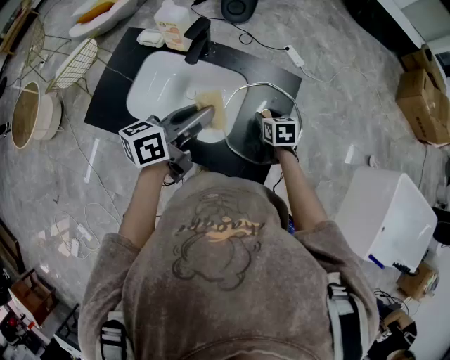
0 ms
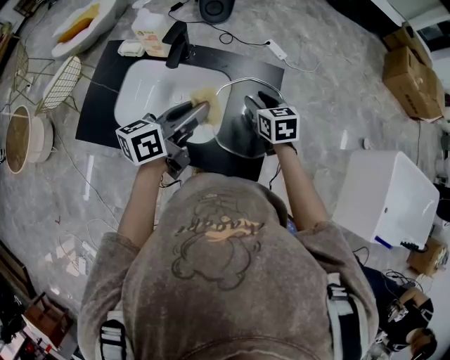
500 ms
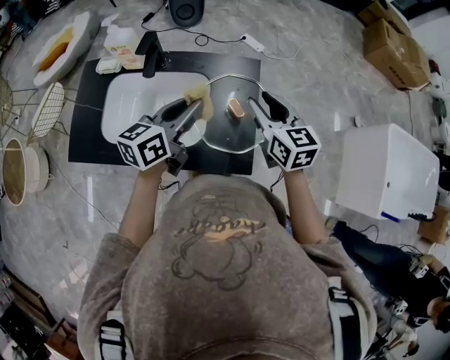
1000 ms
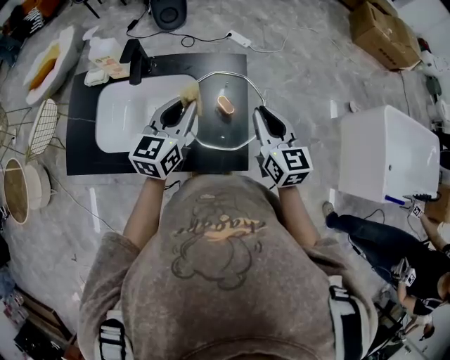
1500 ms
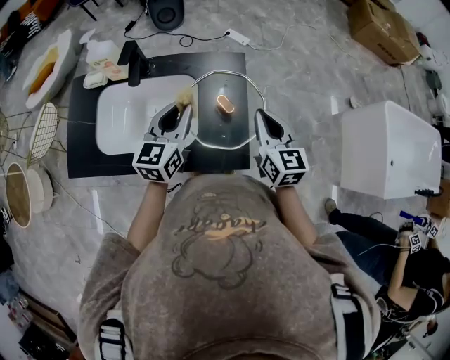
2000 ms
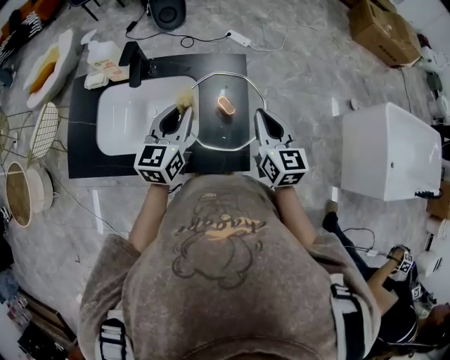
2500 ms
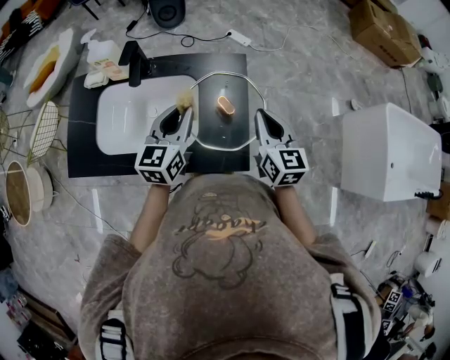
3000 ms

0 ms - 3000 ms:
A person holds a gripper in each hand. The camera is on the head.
0 ms - 1500 ms: The right gripper heads upward, to the right and backward, covering approximately 25 cm, tilts its fingers roughly 40 degrees upward, and closes, while the left gripper moves to the right, some 5 cm, and changes its angle by roughly 30 degrees.
1500 ms - 3000 ms: The grippers make only small movements.

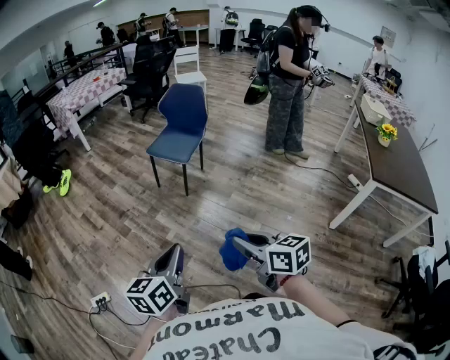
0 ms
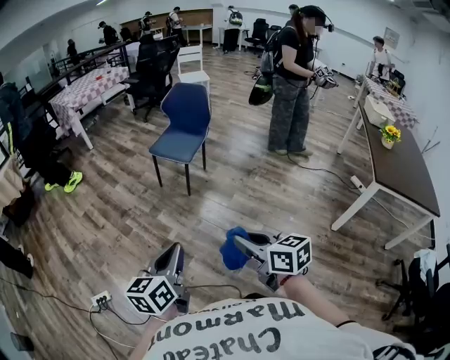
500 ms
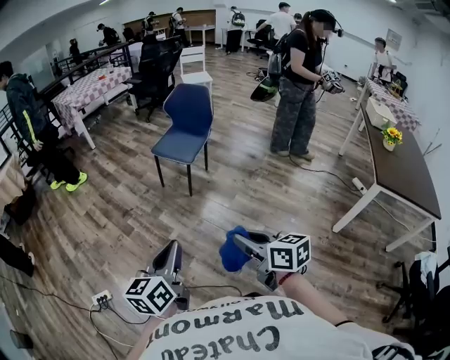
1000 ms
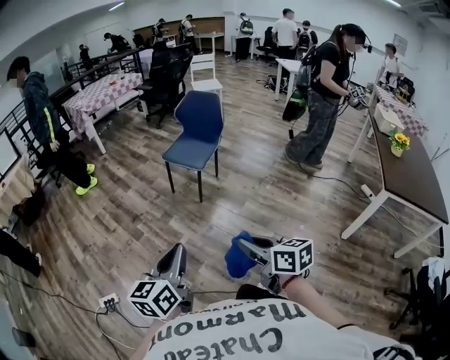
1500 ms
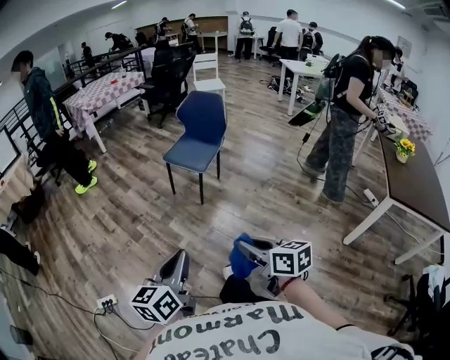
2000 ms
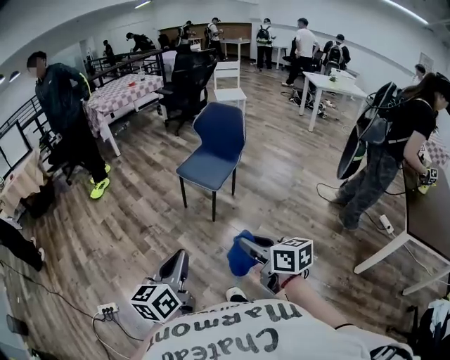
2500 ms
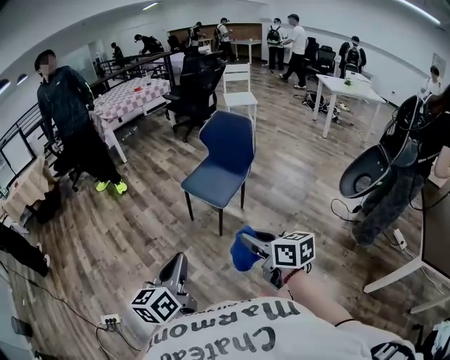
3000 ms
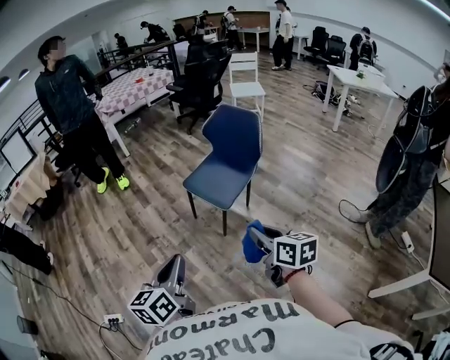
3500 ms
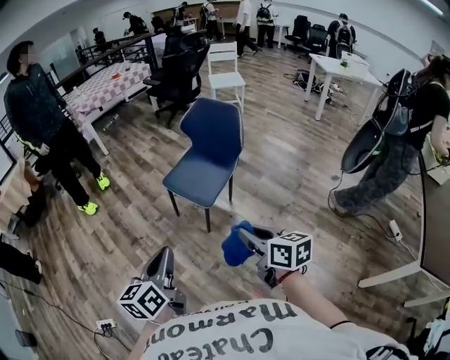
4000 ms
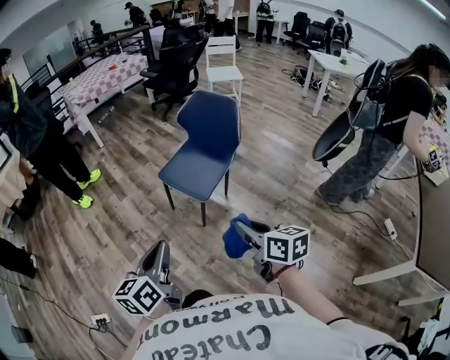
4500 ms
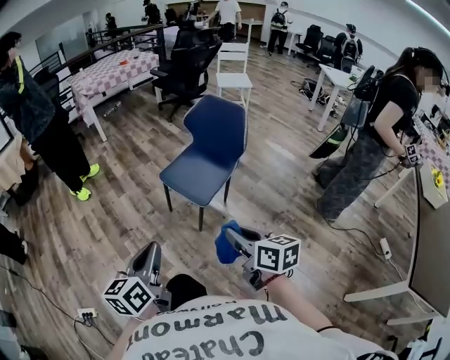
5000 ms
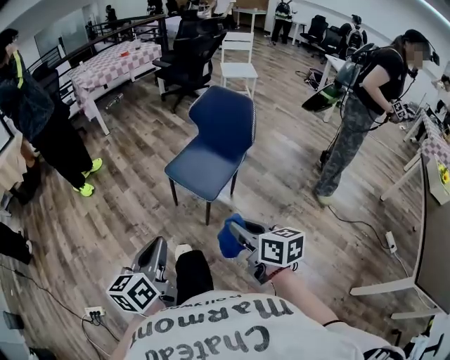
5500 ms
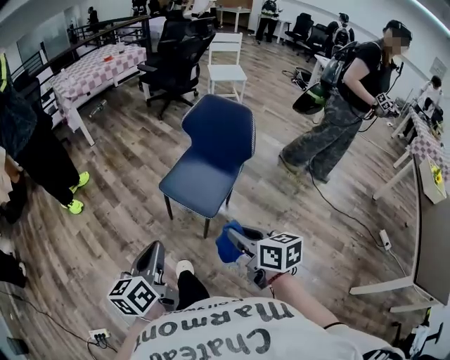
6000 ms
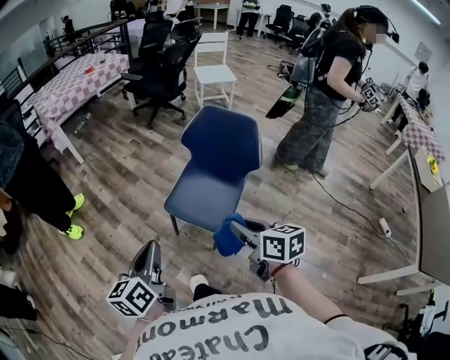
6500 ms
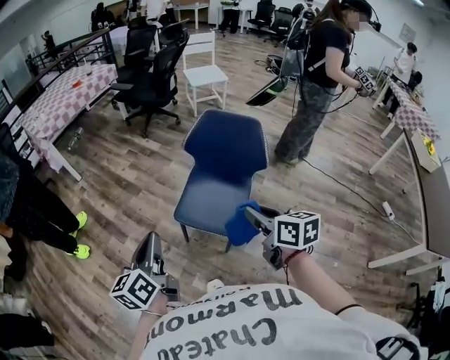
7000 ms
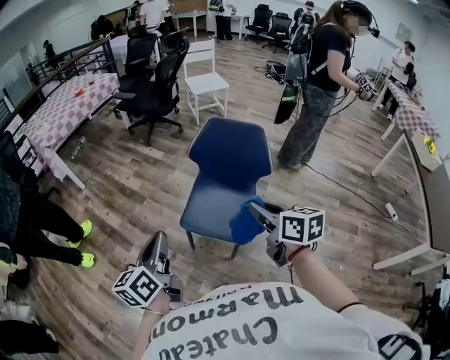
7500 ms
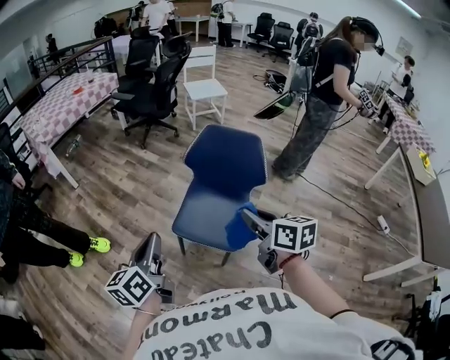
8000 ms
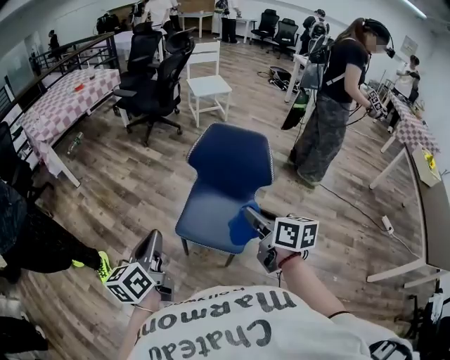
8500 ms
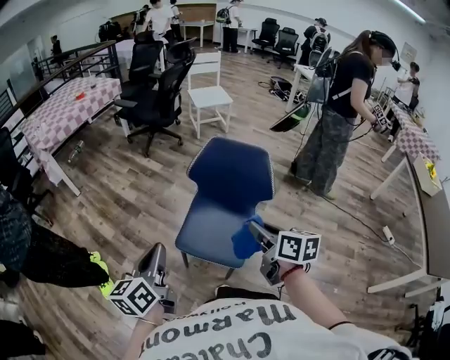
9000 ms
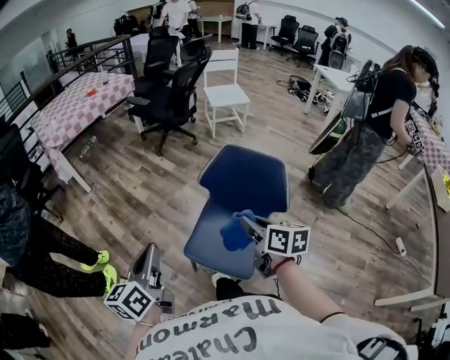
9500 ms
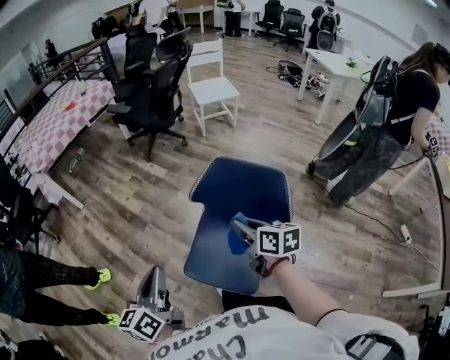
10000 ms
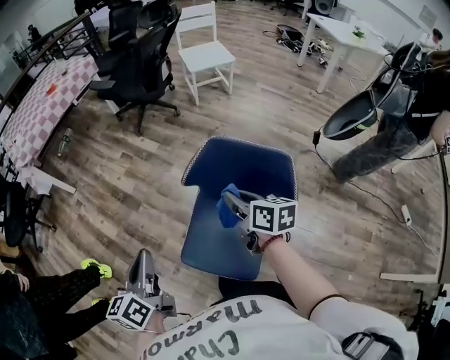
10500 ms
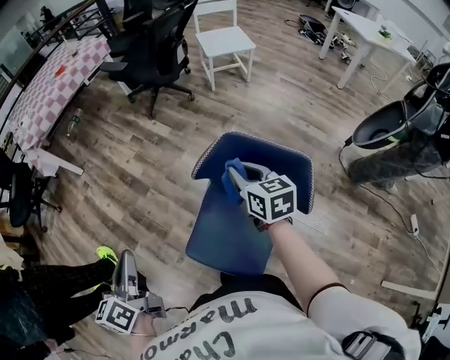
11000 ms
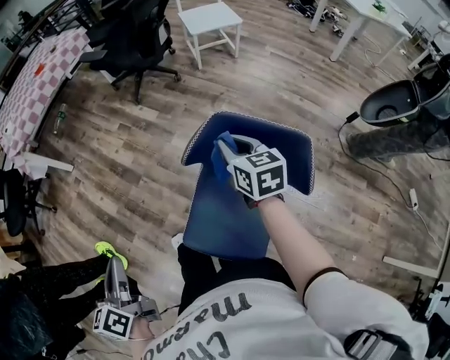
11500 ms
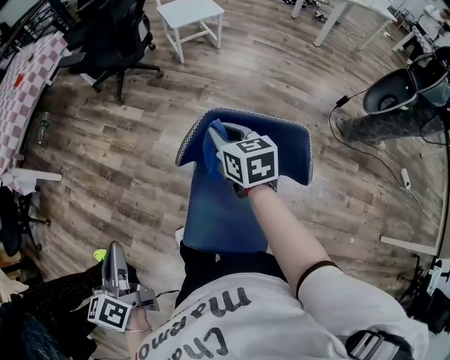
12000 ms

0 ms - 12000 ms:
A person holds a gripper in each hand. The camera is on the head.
0 ms - 2000 ms: The right gripper is displaced forward by some 5 cm.
2000 ms - 4000 ms: Both grippers travel together forward, about 35 cm.
4000 ms - 6000 ms: The right gripper travels forward and to the left by some 15 cm. Meanwhile the left gripper moves forward, approximately 15 cm.
6000 ms - 8000 ms: The right gripper heads forward, covering roughly 20 cm, while the left gripper shifts about 25 cm forward and to the left.
8000 ms - 10000 ms: Both grippers travel together forward, some 20 cm.
10000 ms - 12000 ms: Both grippers move forward, some 20 cm.

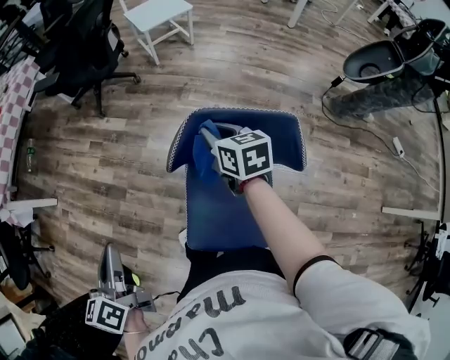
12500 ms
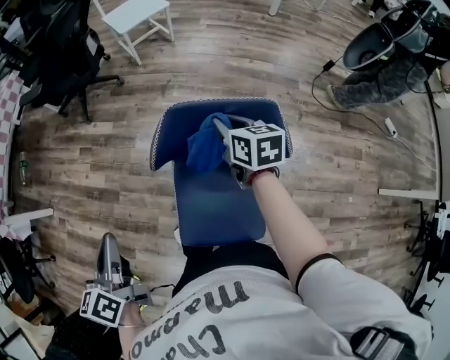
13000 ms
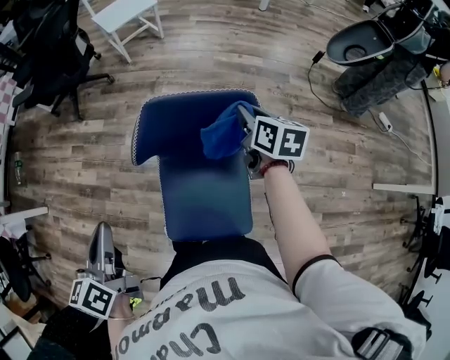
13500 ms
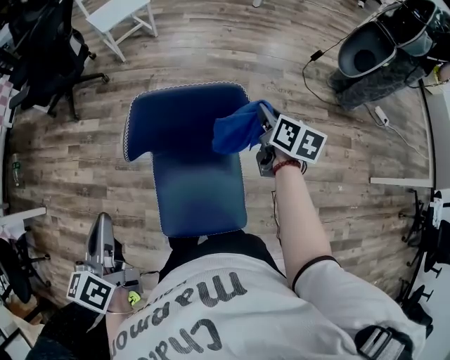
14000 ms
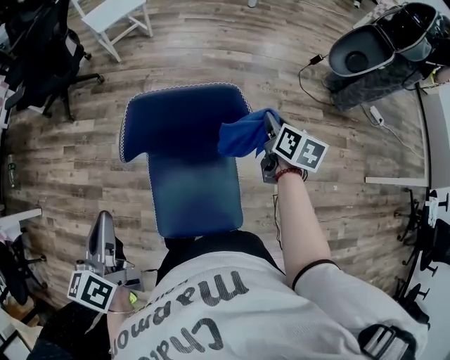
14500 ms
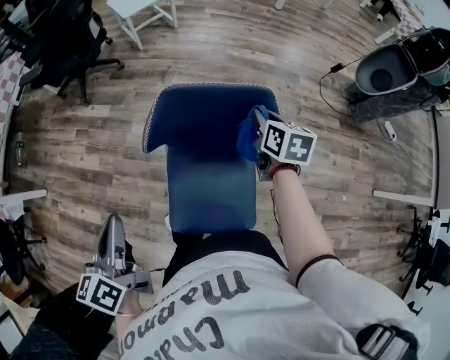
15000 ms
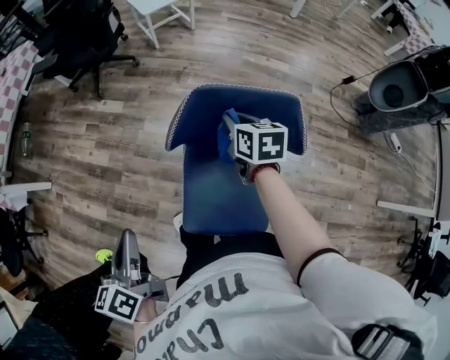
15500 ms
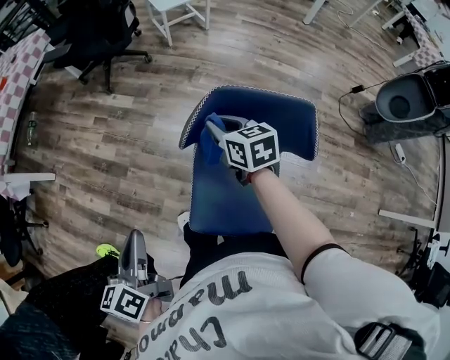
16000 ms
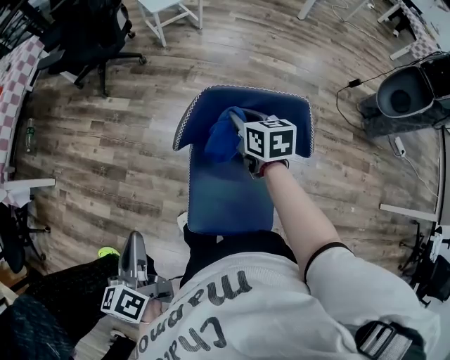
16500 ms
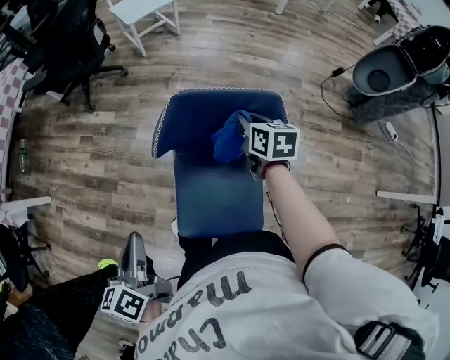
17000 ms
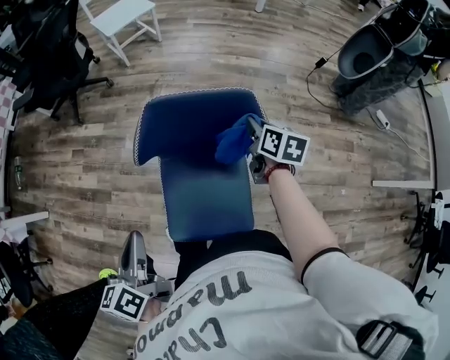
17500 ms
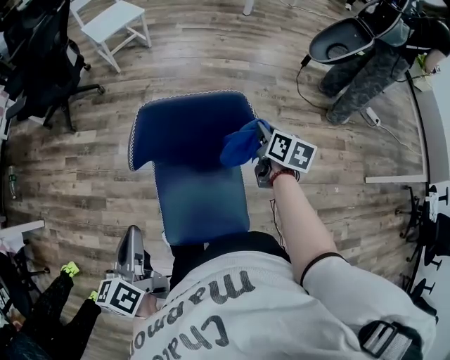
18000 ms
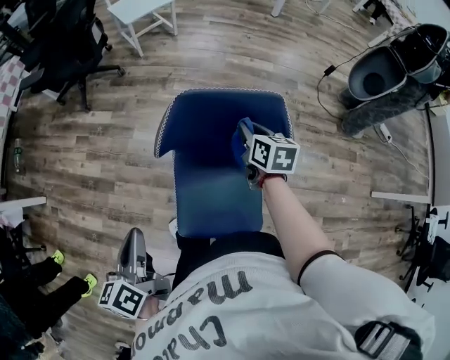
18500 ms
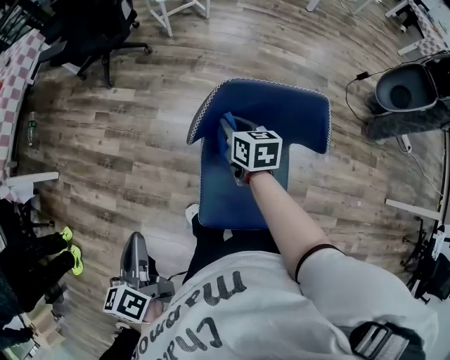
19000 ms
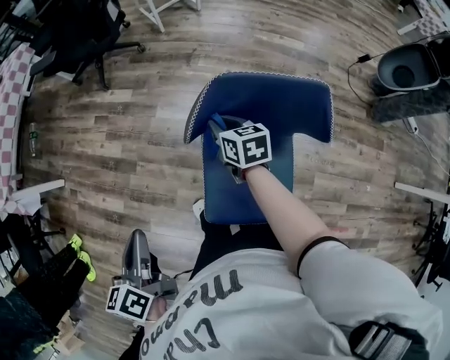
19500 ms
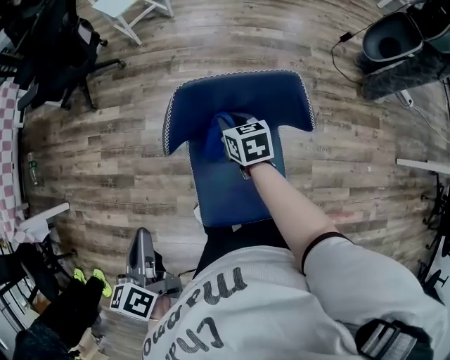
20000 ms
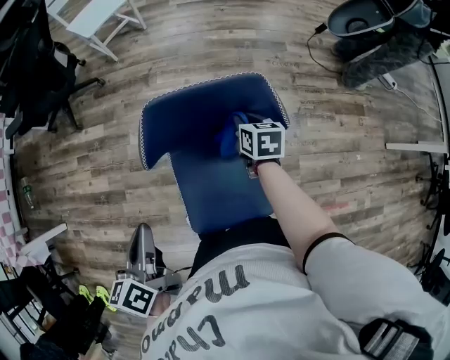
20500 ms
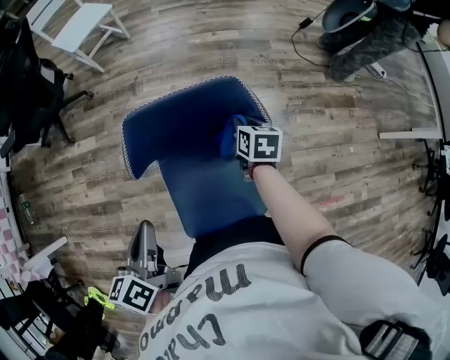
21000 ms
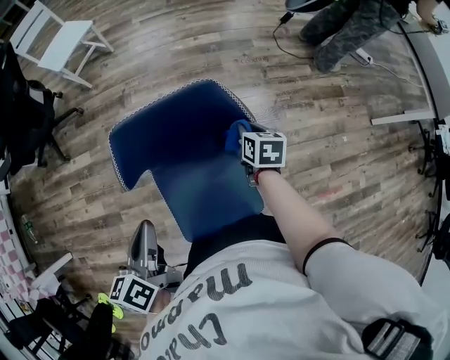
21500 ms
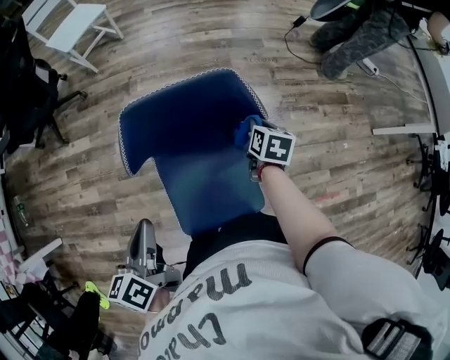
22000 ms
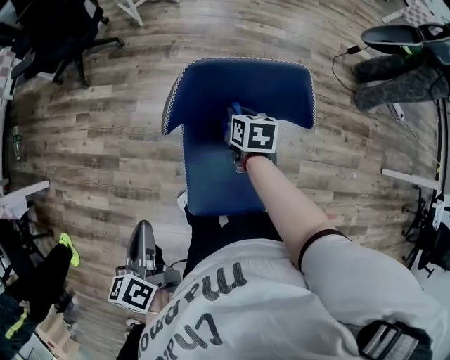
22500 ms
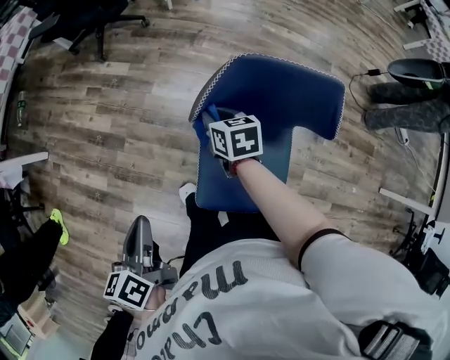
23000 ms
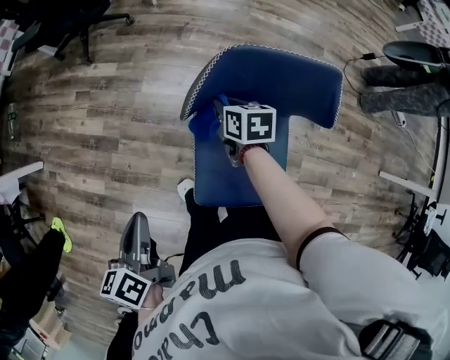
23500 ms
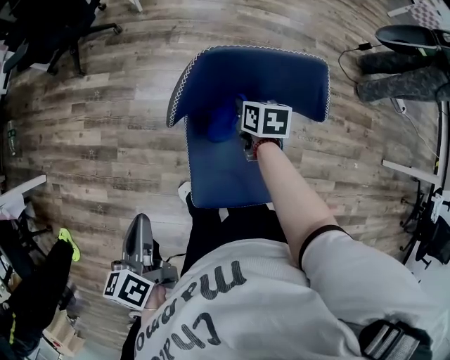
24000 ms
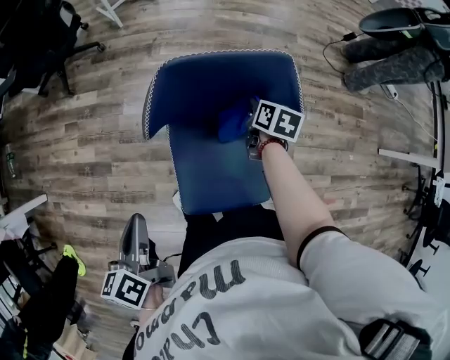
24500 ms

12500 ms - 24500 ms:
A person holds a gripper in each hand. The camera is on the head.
12500 ms - 14500 ms: The left gripper shifts by some 15 cm; the right gripper shifts by about 35 cm, and changes its angle by some 40 degrees.
14500 ms - 16500 ms: The left gripper shifts by some 15 cm; the right gripper moves roughly 30 cm, and turns by approximately 40 degrees.
16500 ms - 18500 ms: The right gripper shifts some 10 cm to the right; the left gripper travels to the right by some 5 cm.
18500 ms - 20500 ms: The right gripper shifts about 5 cm downward, and goes to the left and returns, about 20 cm each way; the left gripper shifts about 5 cm forward, and reaches some 10 cm to the left, then returns.
20500 ms - 22500 ms: The left gripper heads backward, covering about 10 cm. The right gripper moves to the left, about 10 cm.
